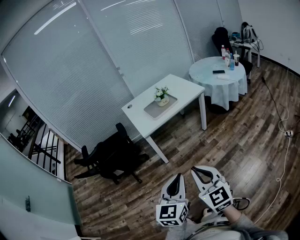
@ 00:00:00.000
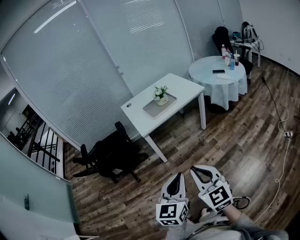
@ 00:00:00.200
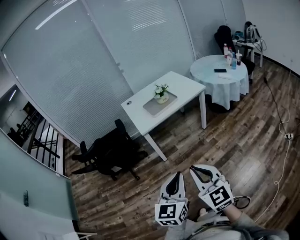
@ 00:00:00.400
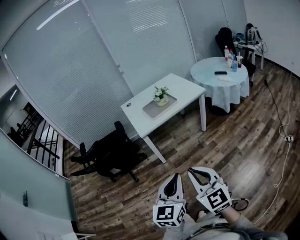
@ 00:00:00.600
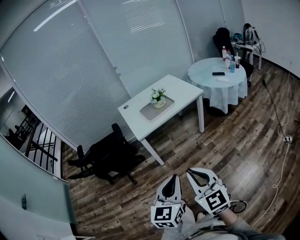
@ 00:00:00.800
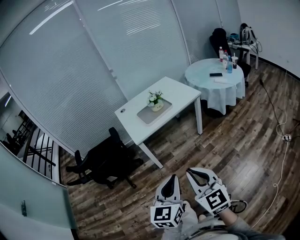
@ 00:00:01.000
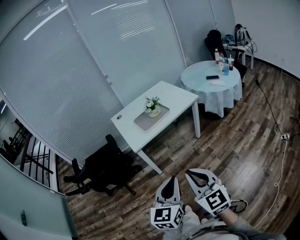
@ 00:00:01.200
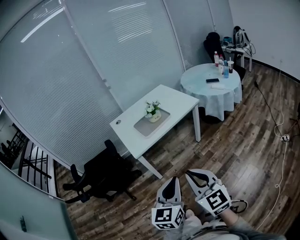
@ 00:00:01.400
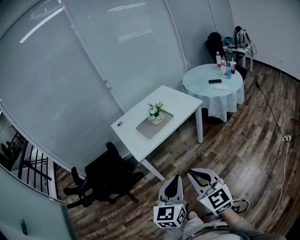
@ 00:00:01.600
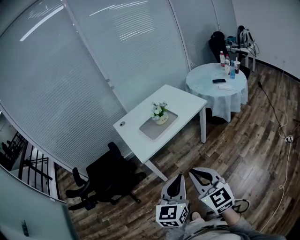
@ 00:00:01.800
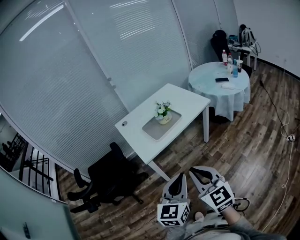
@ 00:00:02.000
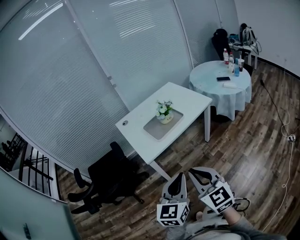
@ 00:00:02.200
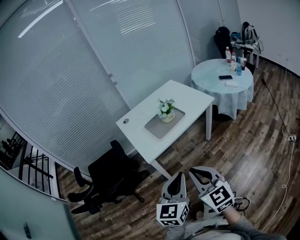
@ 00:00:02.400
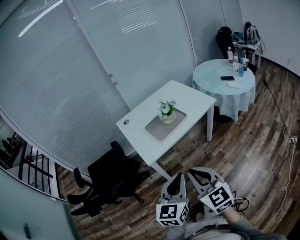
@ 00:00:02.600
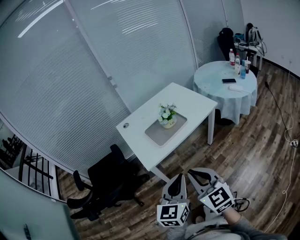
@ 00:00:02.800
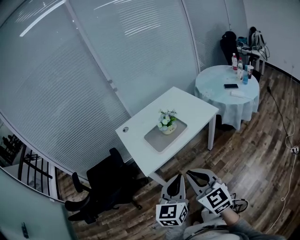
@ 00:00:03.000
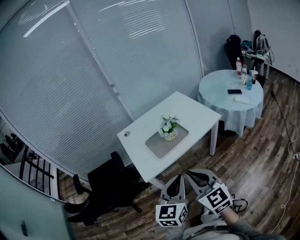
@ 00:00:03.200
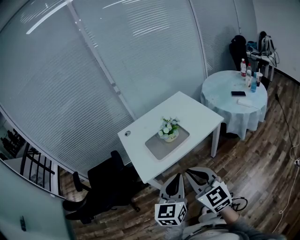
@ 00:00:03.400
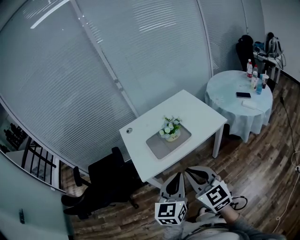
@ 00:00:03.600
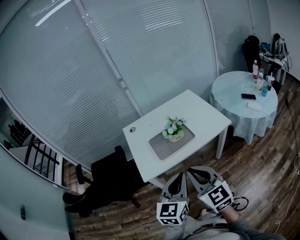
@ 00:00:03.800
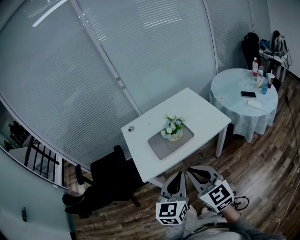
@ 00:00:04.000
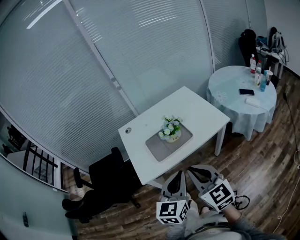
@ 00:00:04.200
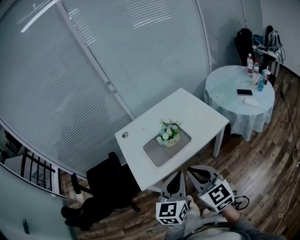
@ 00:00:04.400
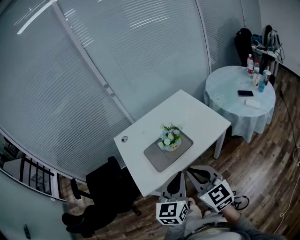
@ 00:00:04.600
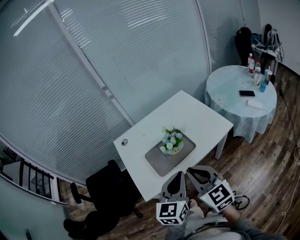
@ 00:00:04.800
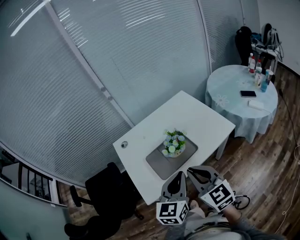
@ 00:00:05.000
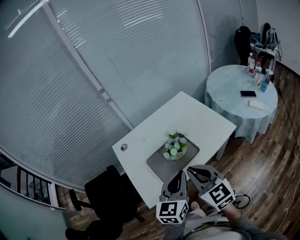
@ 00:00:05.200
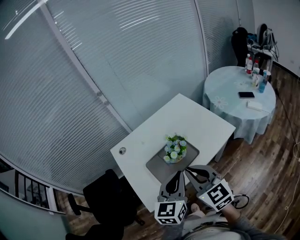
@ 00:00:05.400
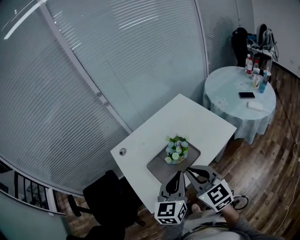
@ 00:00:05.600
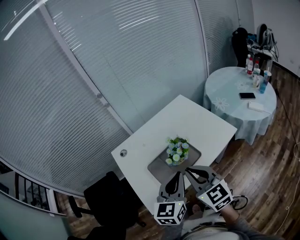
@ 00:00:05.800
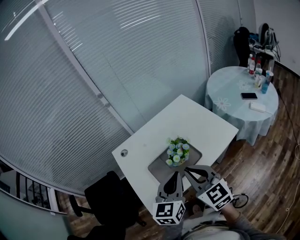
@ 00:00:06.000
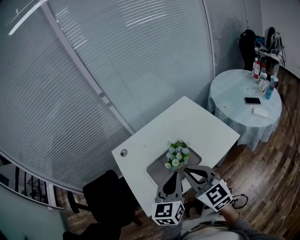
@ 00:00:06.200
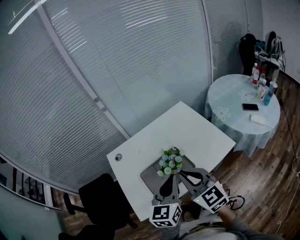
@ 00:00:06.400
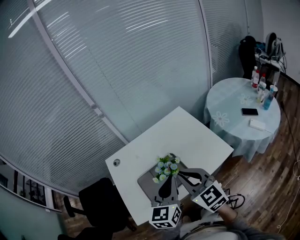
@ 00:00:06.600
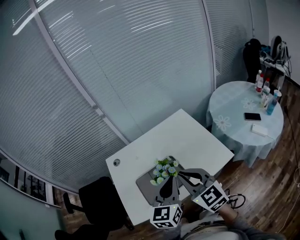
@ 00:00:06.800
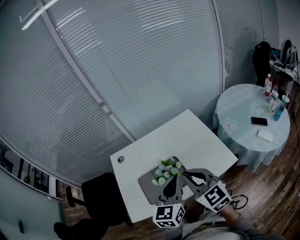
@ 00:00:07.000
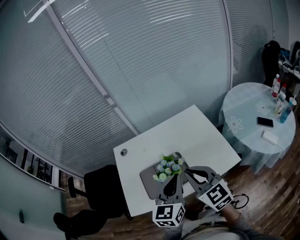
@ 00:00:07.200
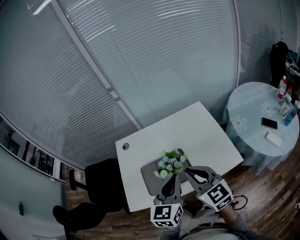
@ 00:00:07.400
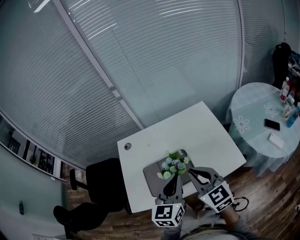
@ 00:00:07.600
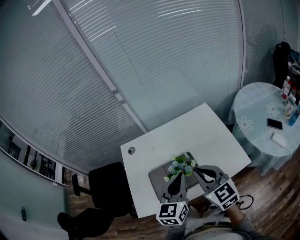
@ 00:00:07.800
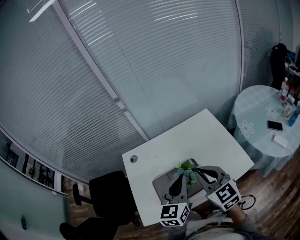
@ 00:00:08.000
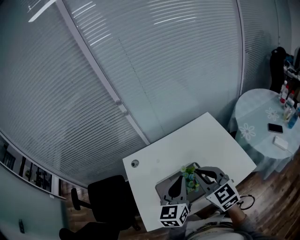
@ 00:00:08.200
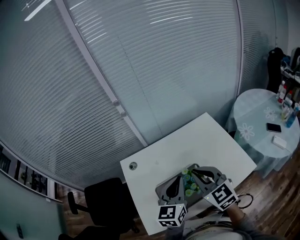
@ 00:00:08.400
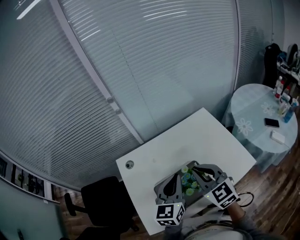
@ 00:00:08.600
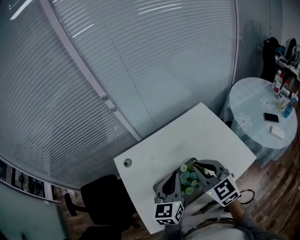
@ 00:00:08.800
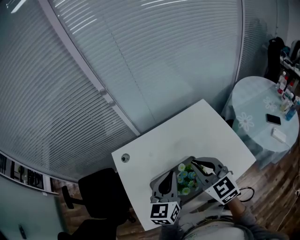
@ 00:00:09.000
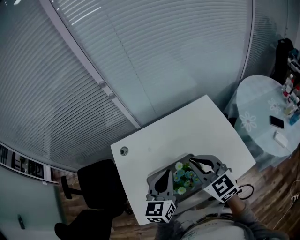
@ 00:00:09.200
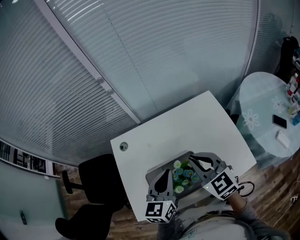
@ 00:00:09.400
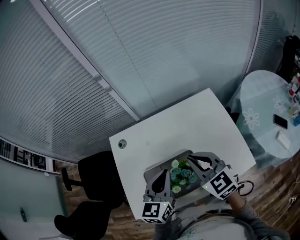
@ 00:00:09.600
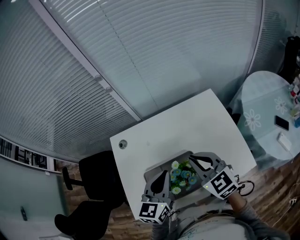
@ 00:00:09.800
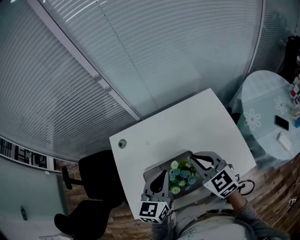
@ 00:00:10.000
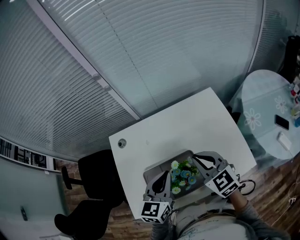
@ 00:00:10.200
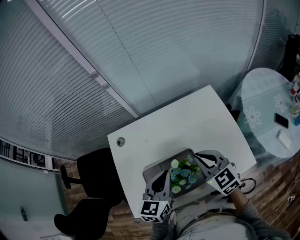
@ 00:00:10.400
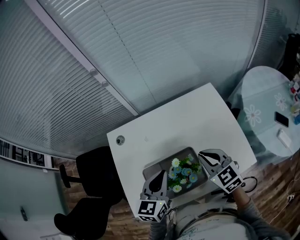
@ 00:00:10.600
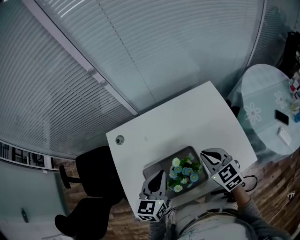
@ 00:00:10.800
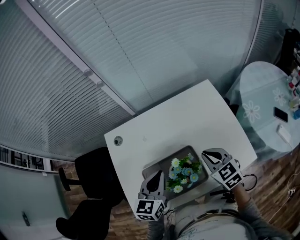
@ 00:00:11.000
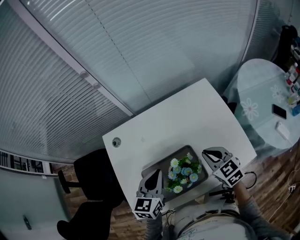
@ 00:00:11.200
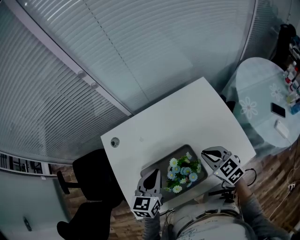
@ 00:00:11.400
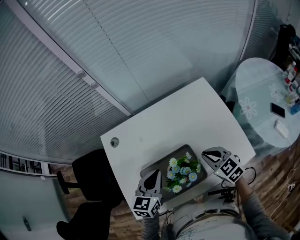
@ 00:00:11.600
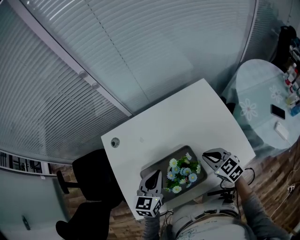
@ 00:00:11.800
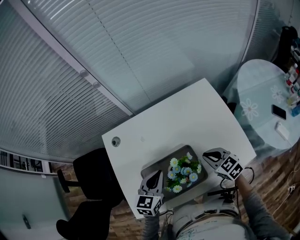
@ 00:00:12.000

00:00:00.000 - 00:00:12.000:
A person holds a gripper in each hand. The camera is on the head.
00:00:00.000 - 00:00:01.600: The two grippers go roughly 20 cm forward.
00:00:01.600 - 00:00:03.000: The two grippers go roughly 15 cm forward.
00:00:03.000 - 00:00:04.400: The two grippers go approximately 15 cm forward and to the right.
00:00:04.400 - 00:00:06.000: Both grippers travel together forward, some 15 cm.
00:00:06.000 - 00:00:07.600: Both grippers travel together to the right and forward, approximately 10 cm.
00:00:07.600 - 00:00:09.000: The left gripper heads forward and to the left, covering roughly 15 cm, while the right gripper goes about 15 cm forward.
00:00:09.000 - 00:00:10.400: The two grippers go approximately 5 cm downward.
00:00:10.400 - 00:00:12.000: The left gripper travels downward by about 10 cm. Meanwhile the right gripper heads downward, covering approximately 15 cm.

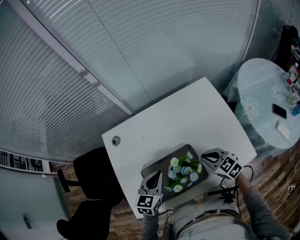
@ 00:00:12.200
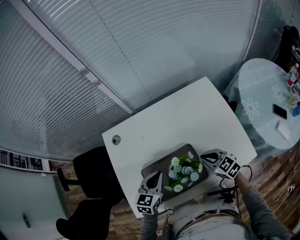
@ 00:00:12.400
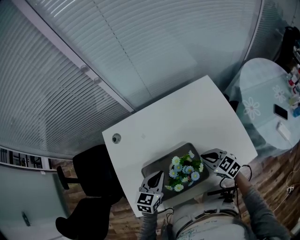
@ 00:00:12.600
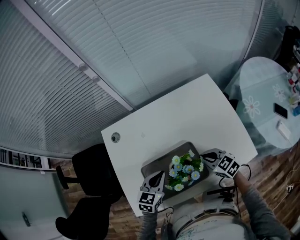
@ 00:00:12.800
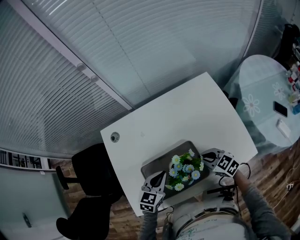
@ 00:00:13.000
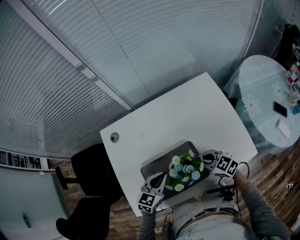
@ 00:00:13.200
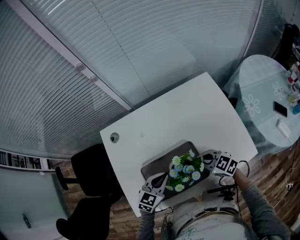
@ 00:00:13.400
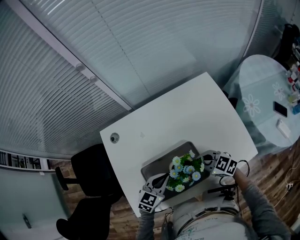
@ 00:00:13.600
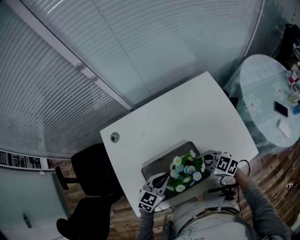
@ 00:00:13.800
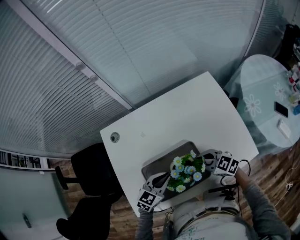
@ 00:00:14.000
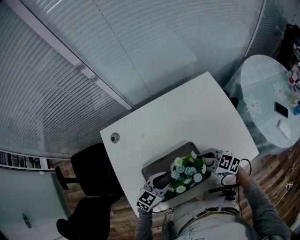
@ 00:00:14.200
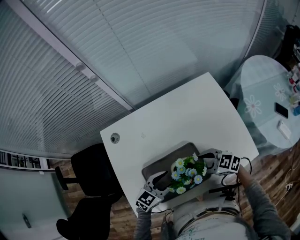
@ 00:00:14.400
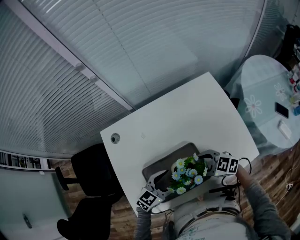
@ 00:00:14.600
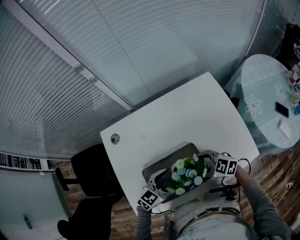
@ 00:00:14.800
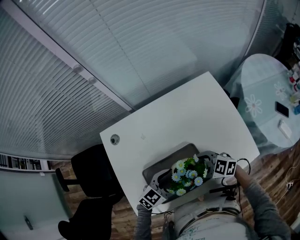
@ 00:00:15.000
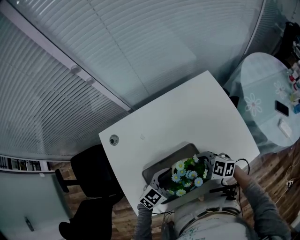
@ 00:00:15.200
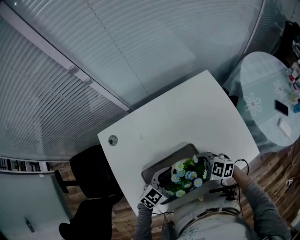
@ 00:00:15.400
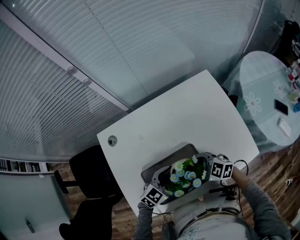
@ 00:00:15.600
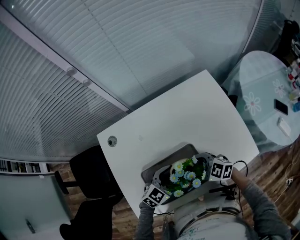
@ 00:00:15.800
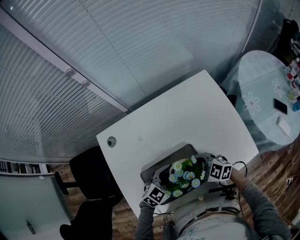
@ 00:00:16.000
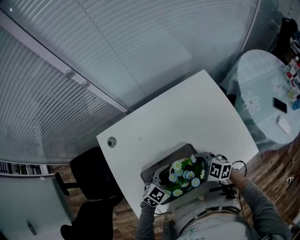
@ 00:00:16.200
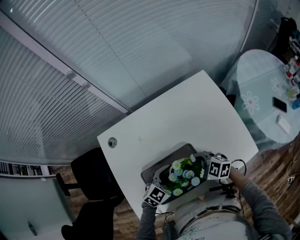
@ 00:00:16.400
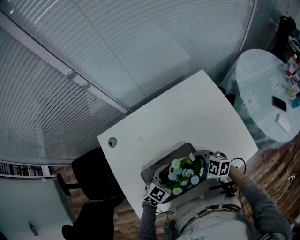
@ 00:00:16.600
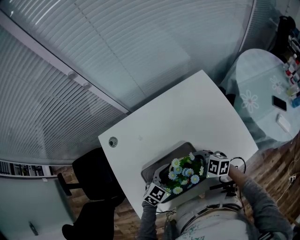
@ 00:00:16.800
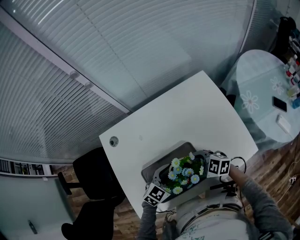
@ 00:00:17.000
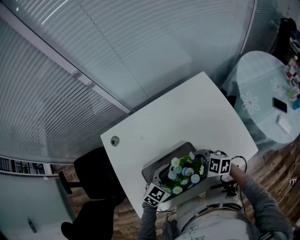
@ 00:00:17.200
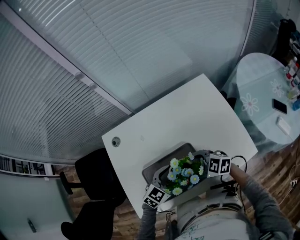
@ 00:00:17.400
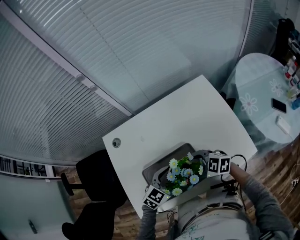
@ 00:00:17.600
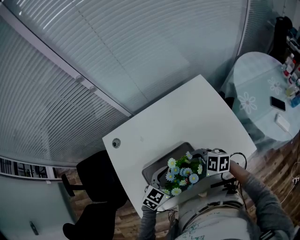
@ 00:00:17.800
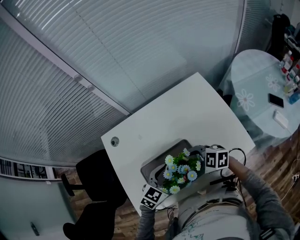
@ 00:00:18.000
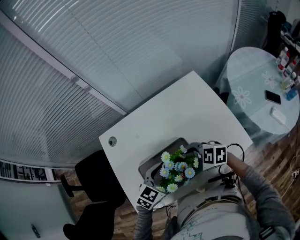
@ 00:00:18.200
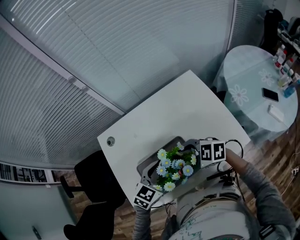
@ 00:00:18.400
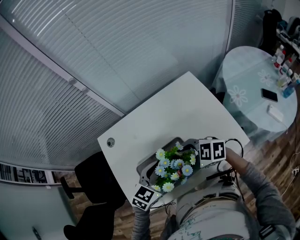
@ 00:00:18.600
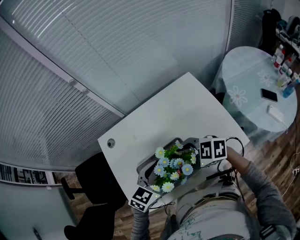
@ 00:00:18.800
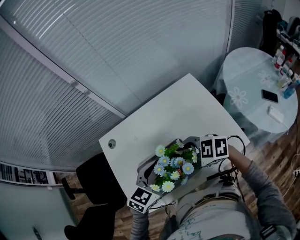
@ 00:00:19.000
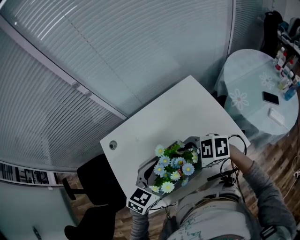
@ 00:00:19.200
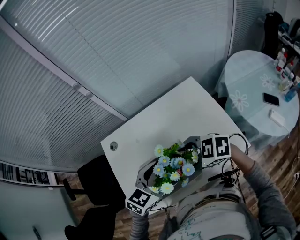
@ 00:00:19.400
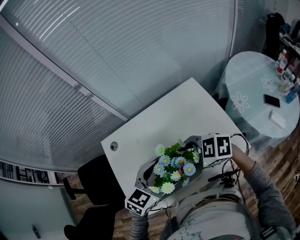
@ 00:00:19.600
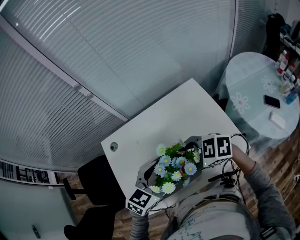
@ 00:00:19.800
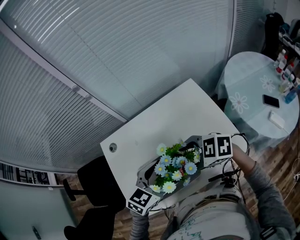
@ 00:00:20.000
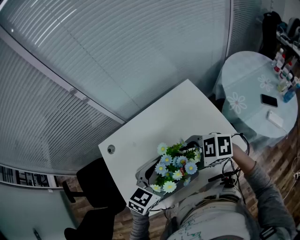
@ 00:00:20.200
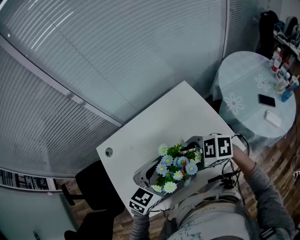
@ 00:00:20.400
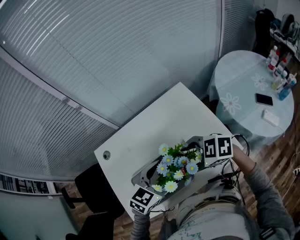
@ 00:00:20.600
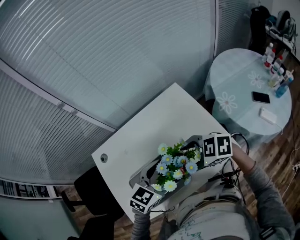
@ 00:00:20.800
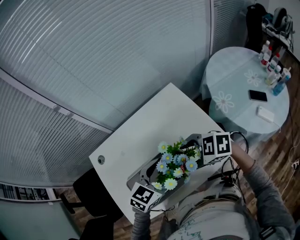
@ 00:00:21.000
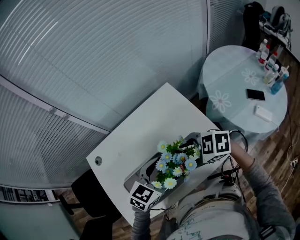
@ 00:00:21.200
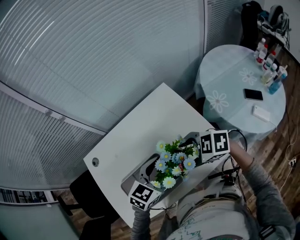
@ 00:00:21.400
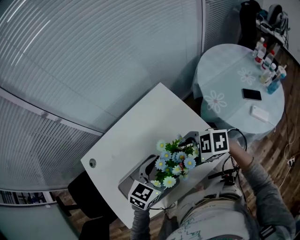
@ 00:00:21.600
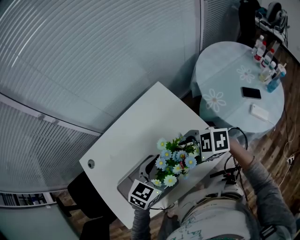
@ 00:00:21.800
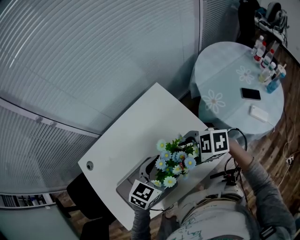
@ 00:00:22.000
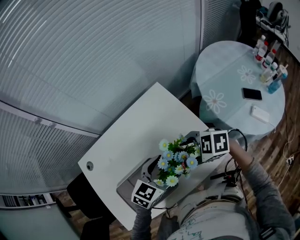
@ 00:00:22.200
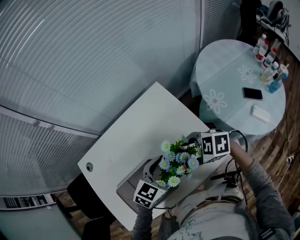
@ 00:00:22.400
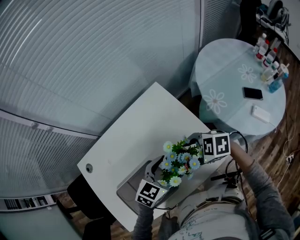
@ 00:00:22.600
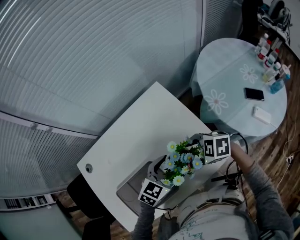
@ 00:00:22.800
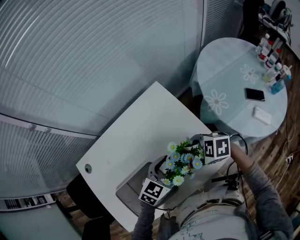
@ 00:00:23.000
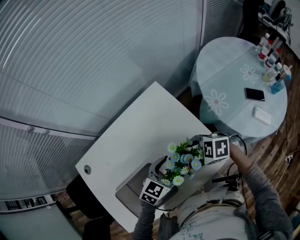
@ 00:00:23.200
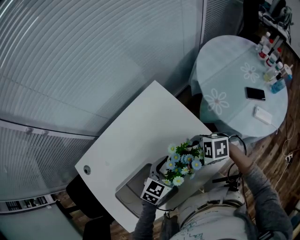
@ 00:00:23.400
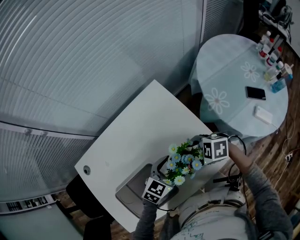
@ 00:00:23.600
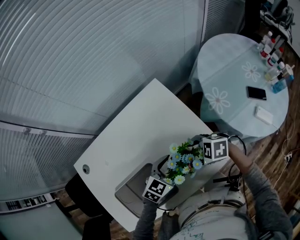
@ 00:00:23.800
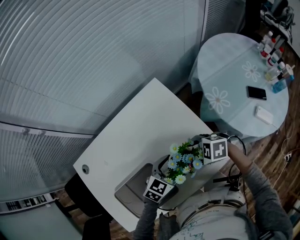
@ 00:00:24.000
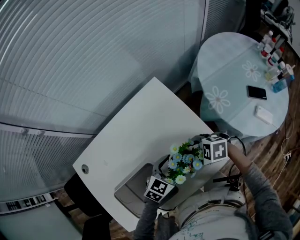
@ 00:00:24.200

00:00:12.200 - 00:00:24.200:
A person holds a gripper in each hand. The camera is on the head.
00:00:12.200 - 00:00:13.800: The right gripper shifts approximately 5 cm to the left, while the left gripper goes approximately 5 cm downward, and turns by about 20 degrees.
00:00:13.800 - 00:00:15.200: The right gripper opens its fingers. The left gripper opens its fingers.
00:00:15.200 - 00:00:16.600: The grippers make only small movements.
00:00:16.600 - 00:00:18.200: The two grippers go about 10 cm upward.
00:00:18.200 - 00:00:19.800: Both grippers travel together upward, approximately 10 cm.
00:00:19.800 - 00:00:21.200: The right gripper shifts by approximately 10 cm, while the left gripper changes place by roughly 10 cm.
00:00:21.200 - 00:00:22.600: The right gripper moves roughly 10 cm; the left gripper ends up roughly 10 cm from where it was.
00:00:22.600 - 00:00:24.200: The two grippers go some 10 cm downward.
